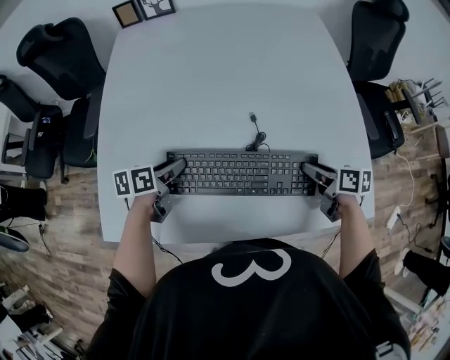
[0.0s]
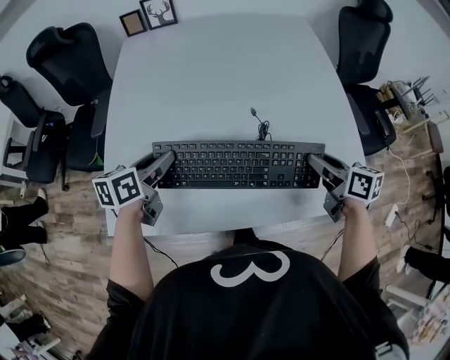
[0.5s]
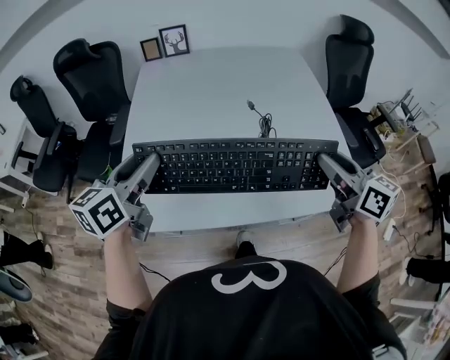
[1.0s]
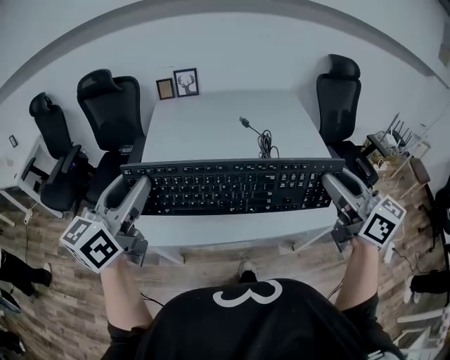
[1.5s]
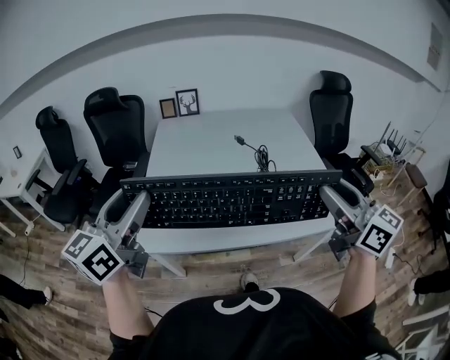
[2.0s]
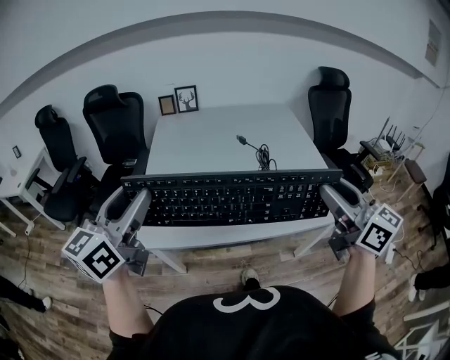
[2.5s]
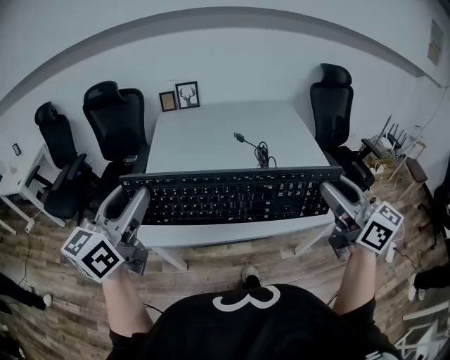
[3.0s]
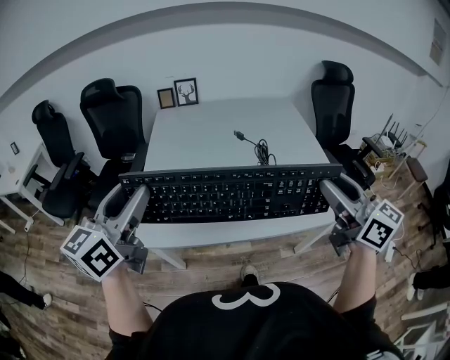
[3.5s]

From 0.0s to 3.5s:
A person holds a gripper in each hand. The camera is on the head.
From 0.0s to 2.0s: The grippers both shift upward and backward by roughly 50 cm. The right gripper tips its fingers upward by about 40 degrees, while the left gripper tips its fingers upward by about 40 degrees.
From 2.0s to 3.5s: The grippers move only a little.

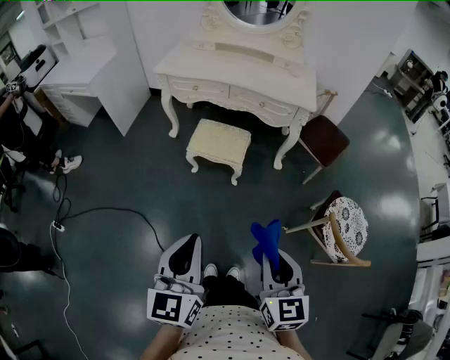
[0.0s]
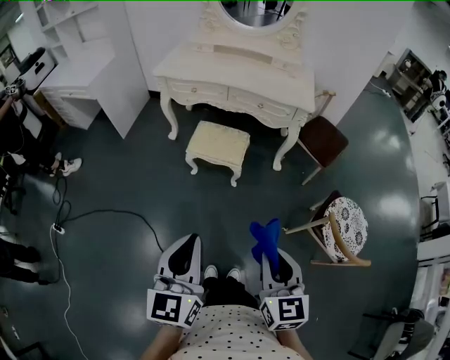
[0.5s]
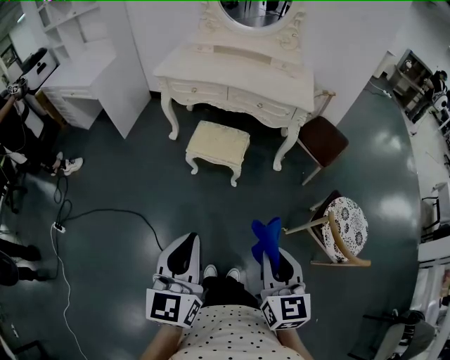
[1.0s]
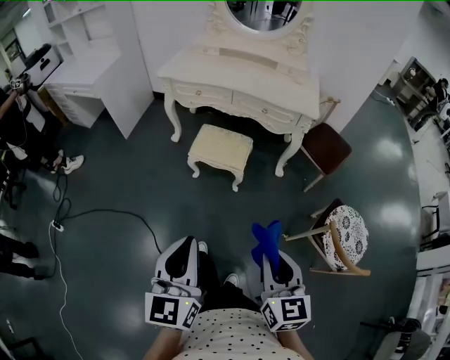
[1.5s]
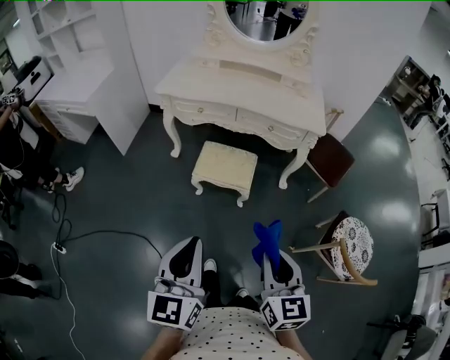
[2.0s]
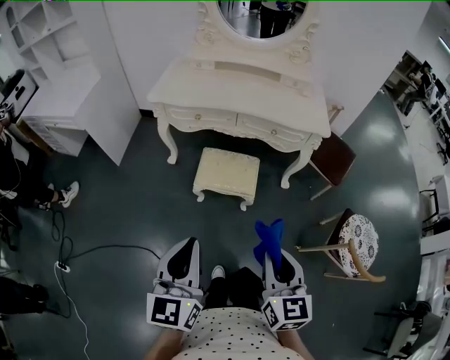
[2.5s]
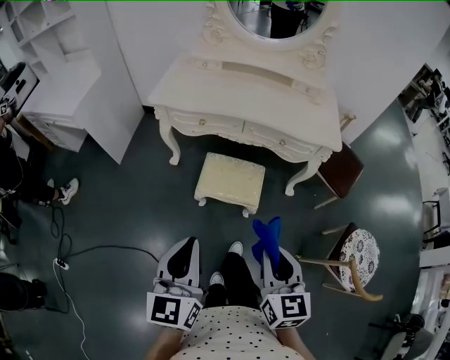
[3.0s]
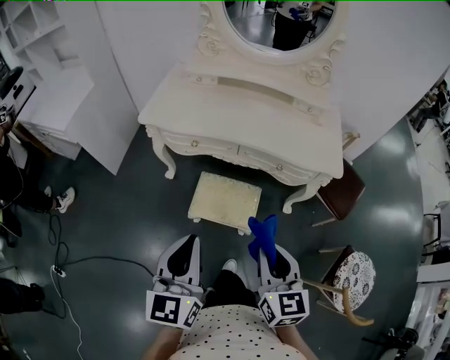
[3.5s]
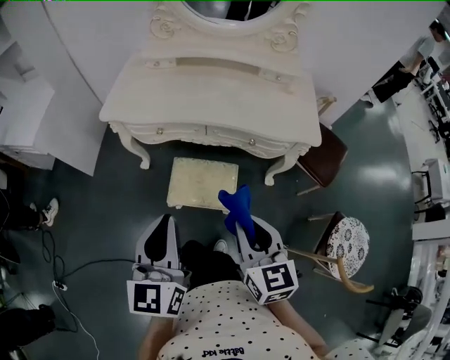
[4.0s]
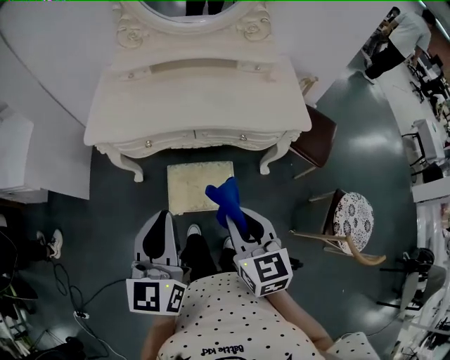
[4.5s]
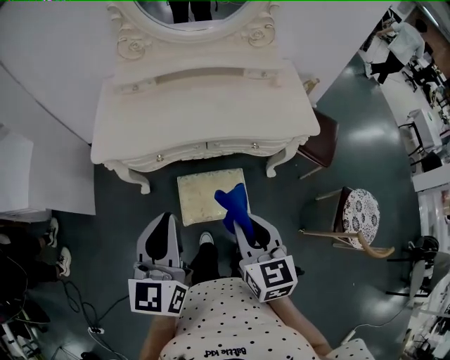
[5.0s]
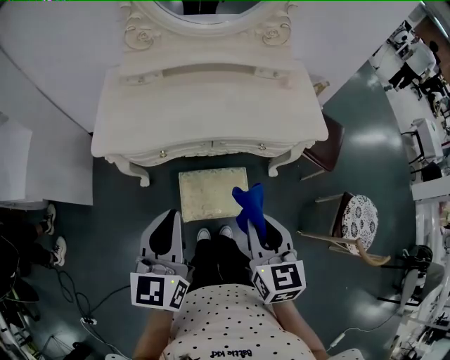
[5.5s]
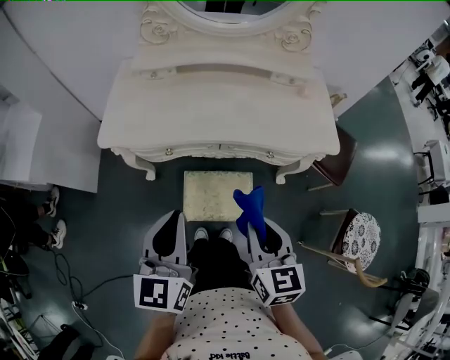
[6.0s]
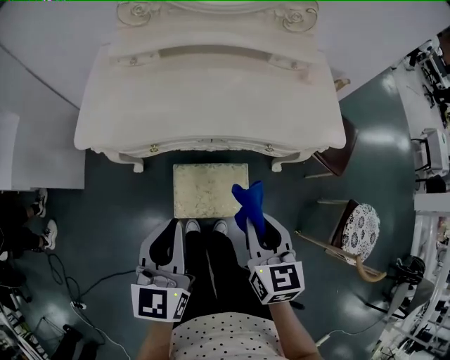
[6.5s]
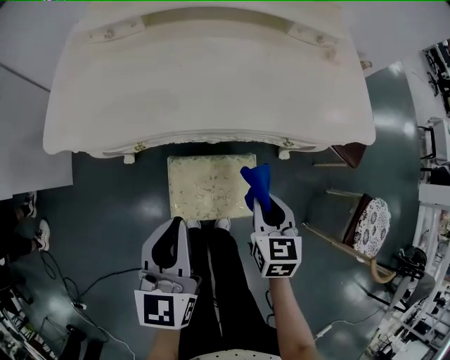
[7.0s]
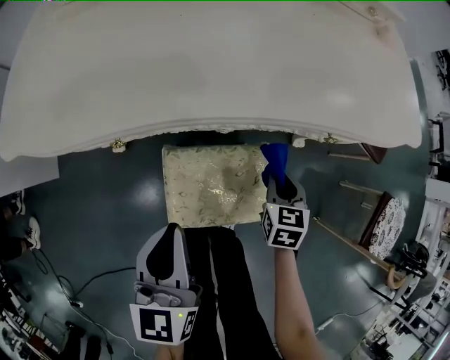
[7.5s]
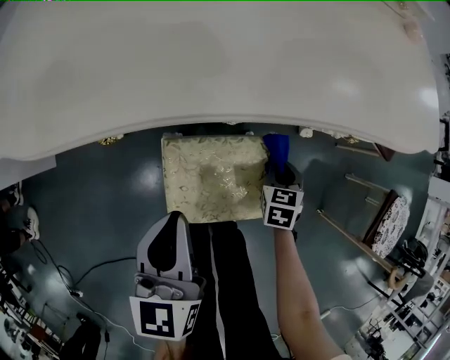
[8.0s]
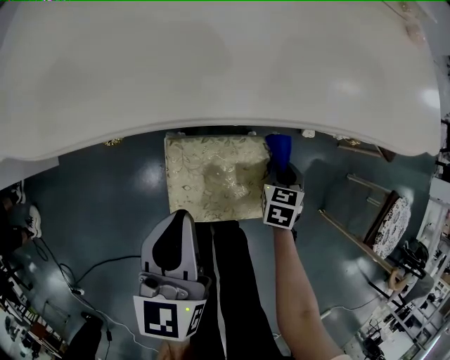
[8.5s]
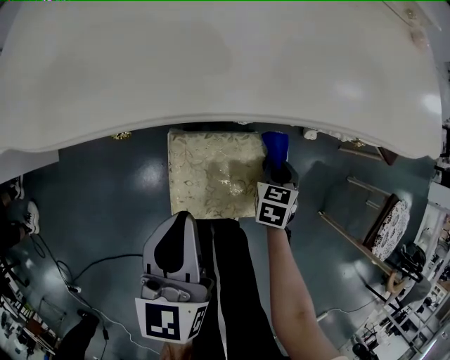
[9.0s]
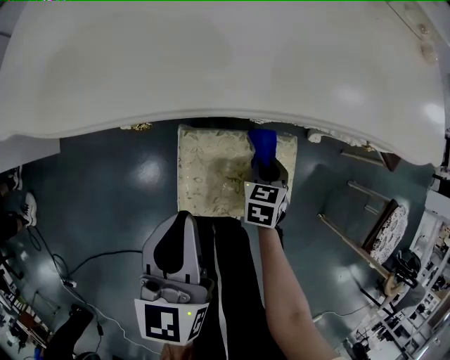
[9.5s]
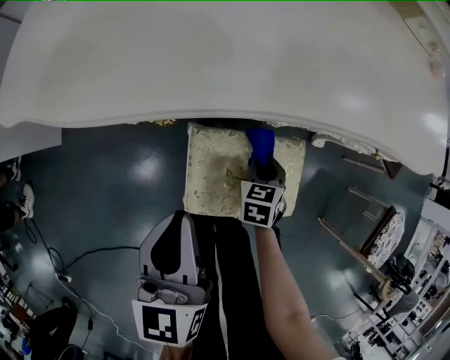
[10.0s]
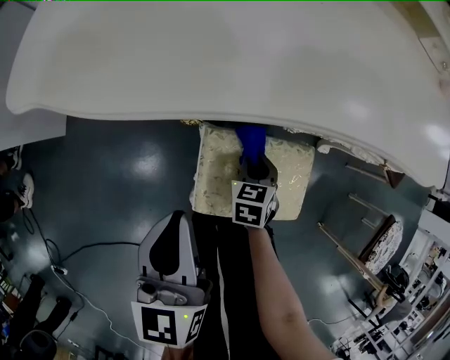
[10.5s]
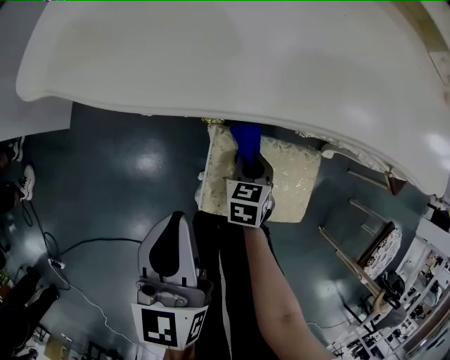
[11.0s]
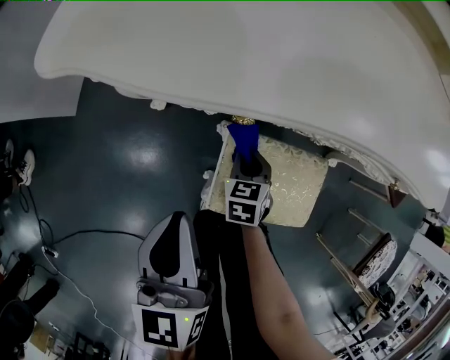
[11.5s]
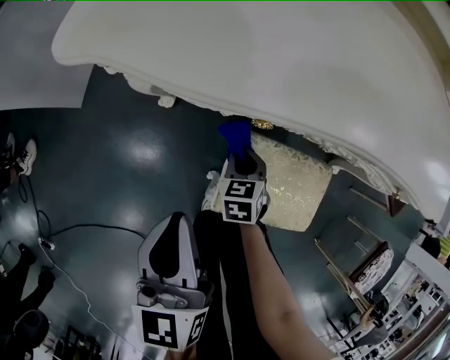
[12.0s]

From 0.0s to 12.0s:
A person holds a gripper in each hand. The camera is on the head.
From 0.0s to 2.0s: Both grippers move forward and to the left, about 15 cm.
From 2.0s to 4.0s: Both grippers move forward, about 35 cm.
From 4.0s to 6.0s: Both grippers move forward and to the left, approximately 15 cm.
From 6.0s to 8.0s: The right gripper travels downward by some 50 cm, and tilts its fingers about 30 degrees downward; the left gripper goes some 35 cm downward.
From 8.0s to 10.0s: The right gripper travels to the left by some 15 cm. Meanwhile the left gripper shifts about 5 cm to the left.
From 10.0s to 12.0s: The right gripper travels to the left by roughly 20 cm. The left gripper moves to the left, approximately 10 cm.

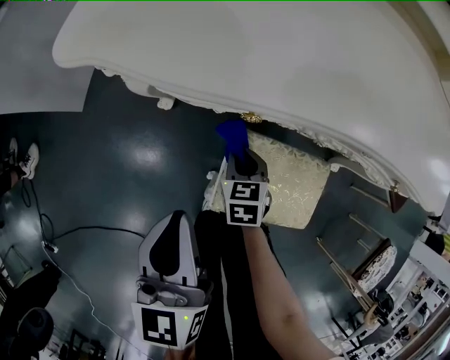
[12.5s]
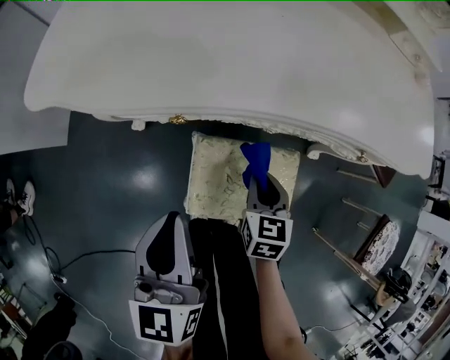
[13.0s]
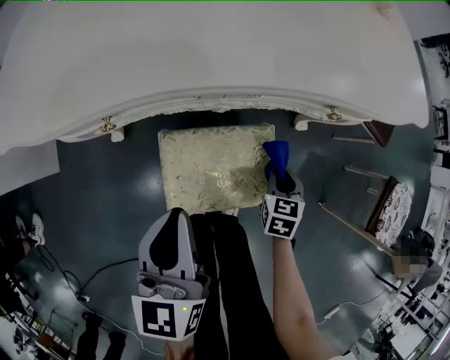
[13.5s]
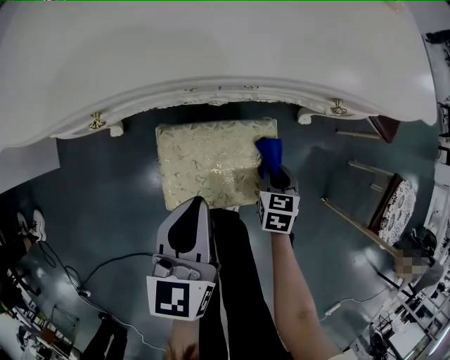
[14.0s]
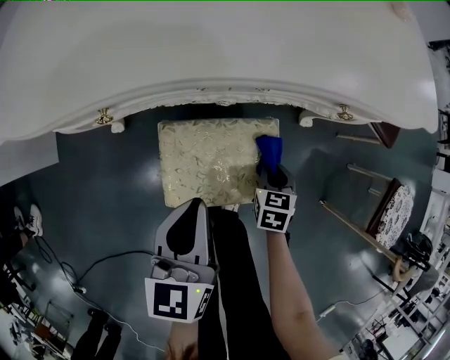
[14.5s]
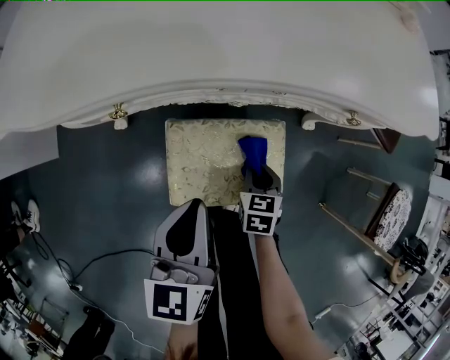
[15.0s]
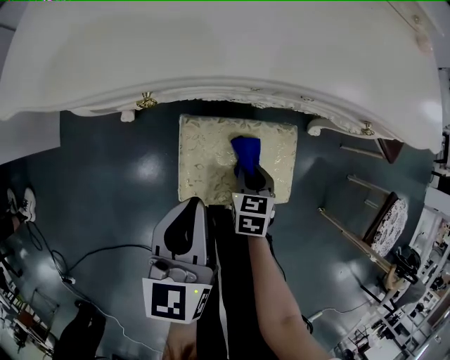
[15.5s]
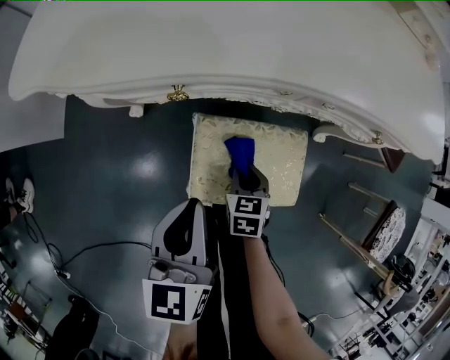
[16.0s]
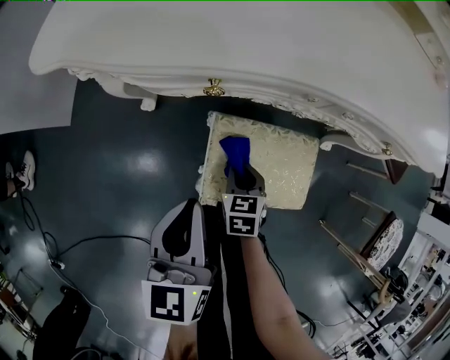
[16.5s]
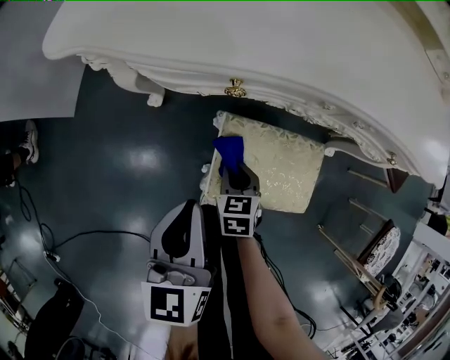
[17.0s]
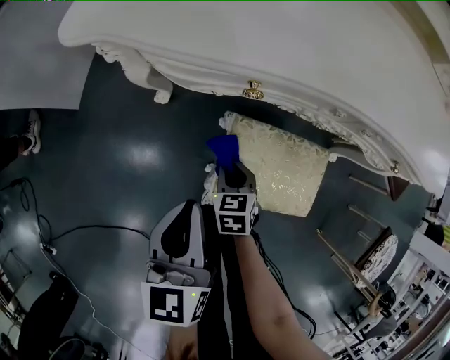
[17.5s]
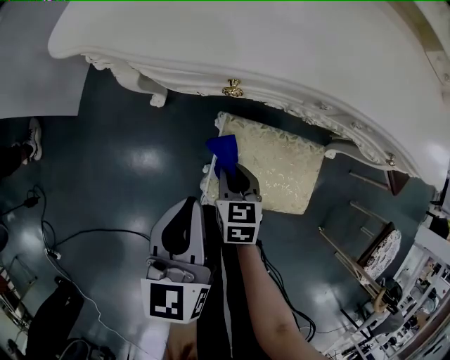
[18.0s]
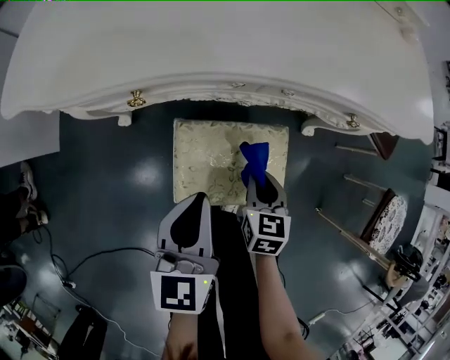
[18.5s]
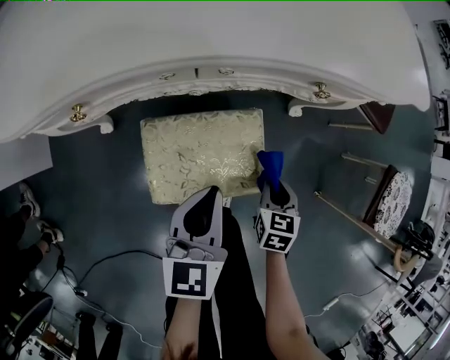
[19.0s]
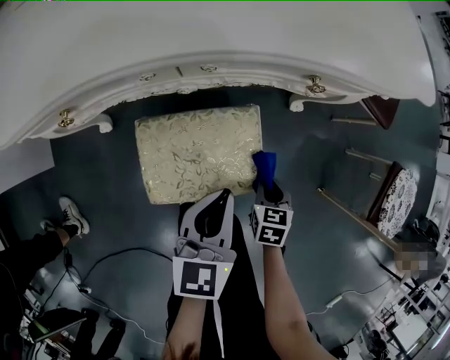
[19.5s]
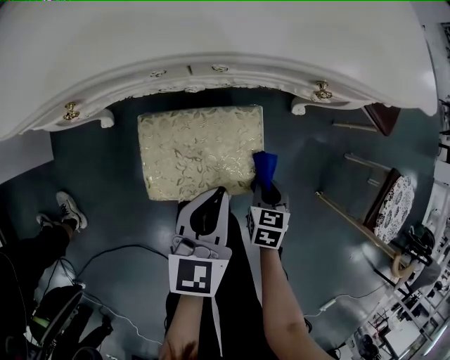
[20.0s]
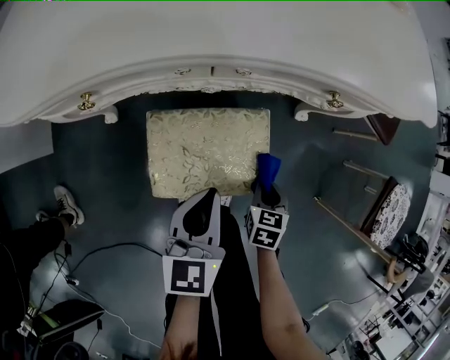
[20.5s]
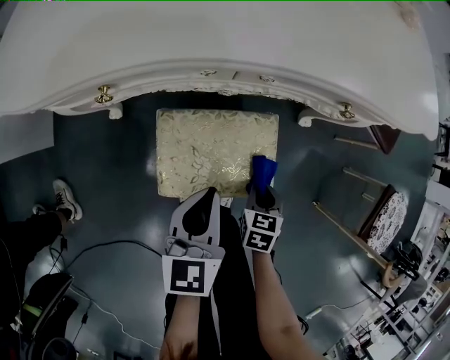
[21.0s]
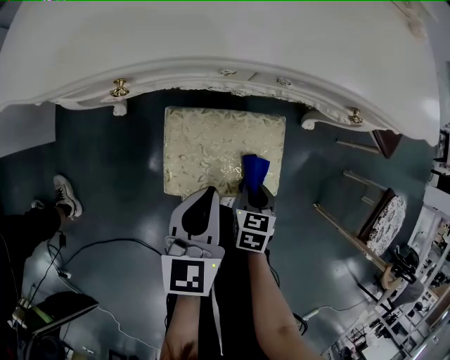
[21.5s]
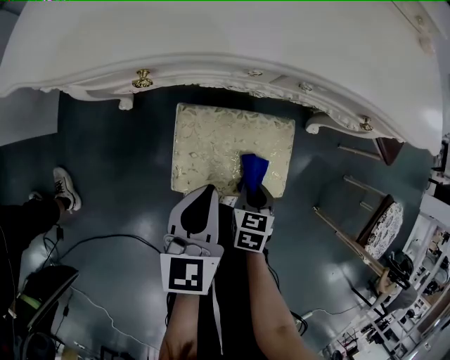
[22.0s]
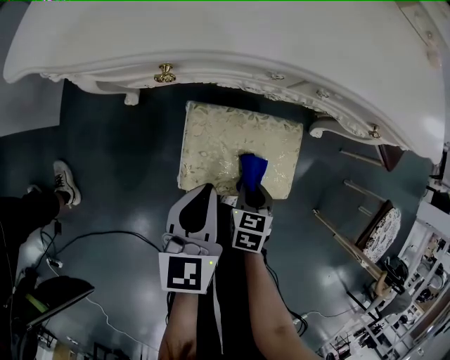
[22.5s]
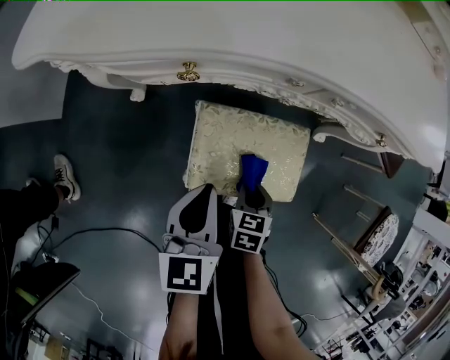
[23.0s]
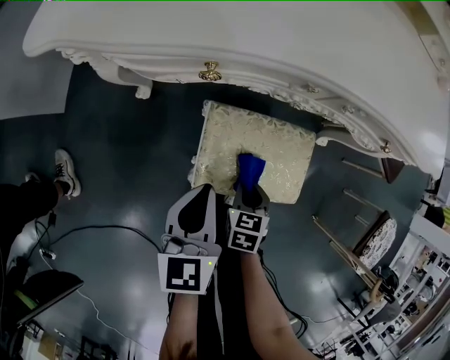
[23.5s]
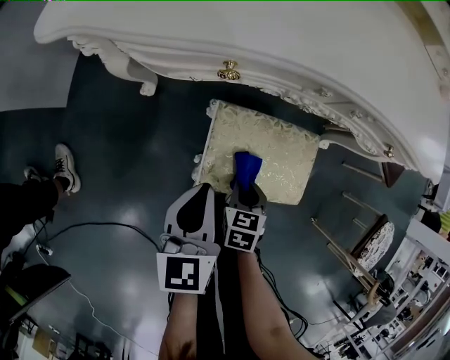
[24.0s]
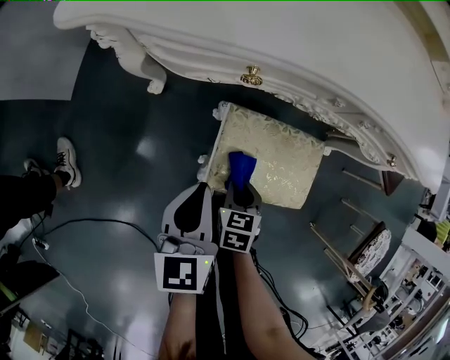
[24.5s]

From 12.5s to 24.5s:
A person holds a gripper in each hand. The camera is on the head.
From 12.5s to 14.5s: The right gripper moves about 10 cm upward and comes back, and rotates about 30 degrees. Meanwhile the left gripper moves roughly 20 cm, and changes its angle by some 30 degrees.
From 14.5s to 16.5s: The right gripper heads to the left, covering approximately 25 cm. The left gripper travels to the left by approximately 15 cm.
From 16.5s to 18.5s: The right gripper moves to the right and upward, about 15 cm, while the left gripper shifts some 10 cm to the right.
From 18.5s to 20.5s: Both grippers travel together to the right and downward, approximately 15 cm.
From 20.5s to 22.5s: The two grippers go about 10 cm to the left.
From 22.5s to 24.5s: Both grippers travel together to the left, about 10 cm.
